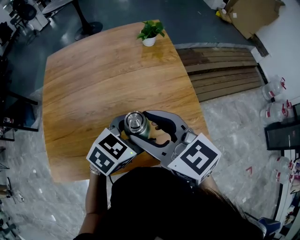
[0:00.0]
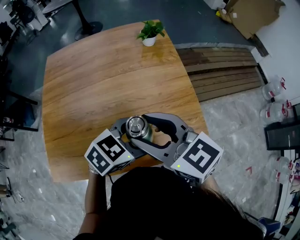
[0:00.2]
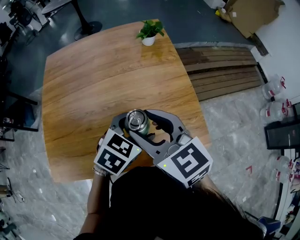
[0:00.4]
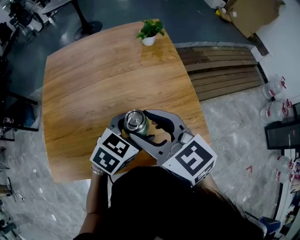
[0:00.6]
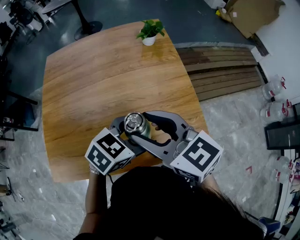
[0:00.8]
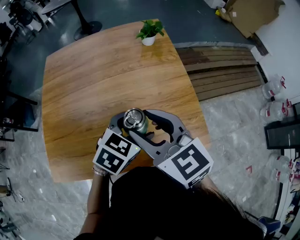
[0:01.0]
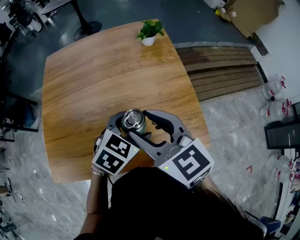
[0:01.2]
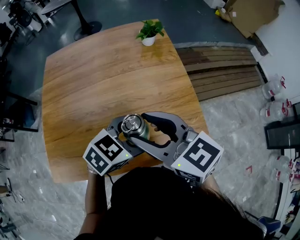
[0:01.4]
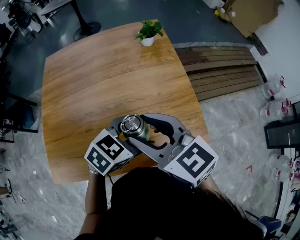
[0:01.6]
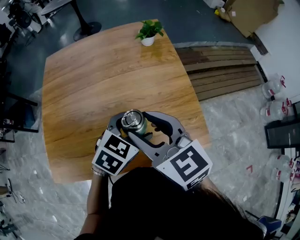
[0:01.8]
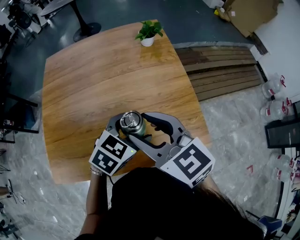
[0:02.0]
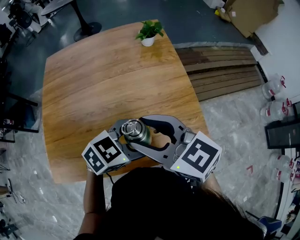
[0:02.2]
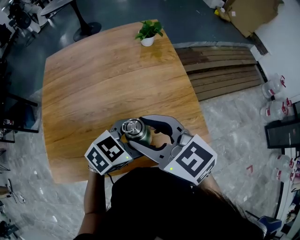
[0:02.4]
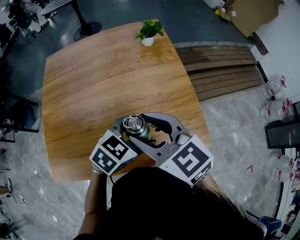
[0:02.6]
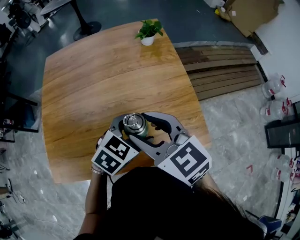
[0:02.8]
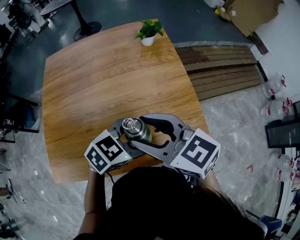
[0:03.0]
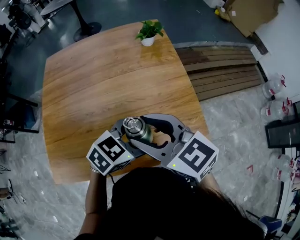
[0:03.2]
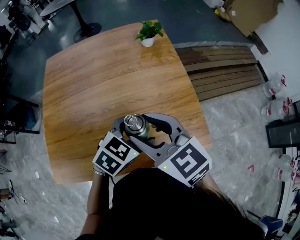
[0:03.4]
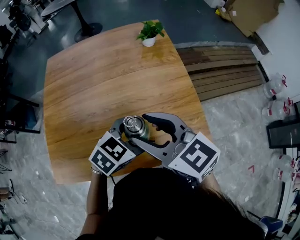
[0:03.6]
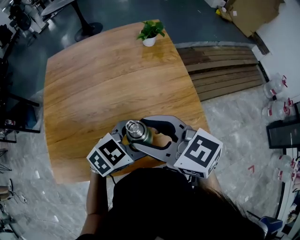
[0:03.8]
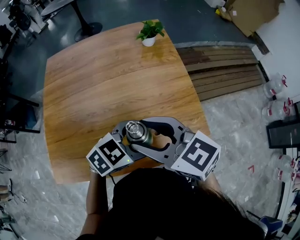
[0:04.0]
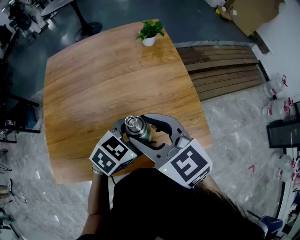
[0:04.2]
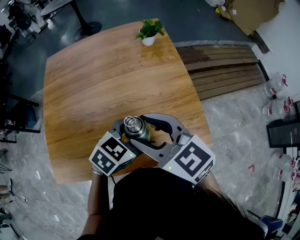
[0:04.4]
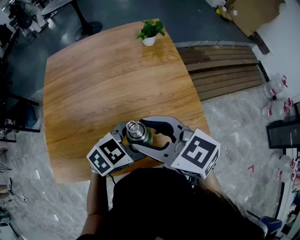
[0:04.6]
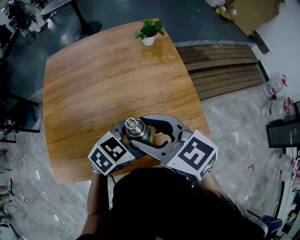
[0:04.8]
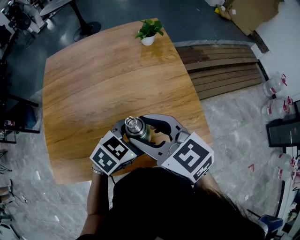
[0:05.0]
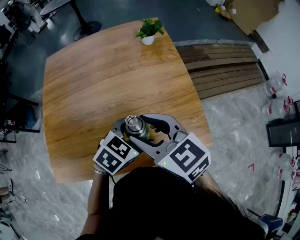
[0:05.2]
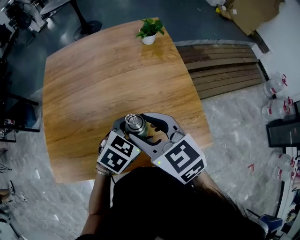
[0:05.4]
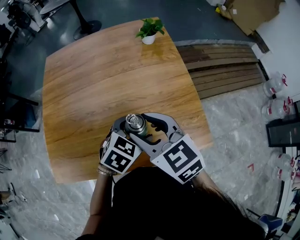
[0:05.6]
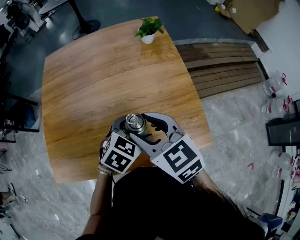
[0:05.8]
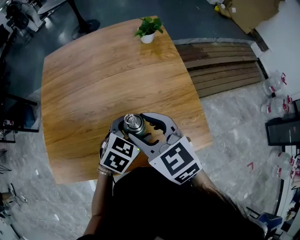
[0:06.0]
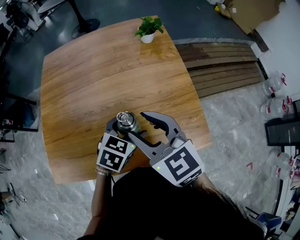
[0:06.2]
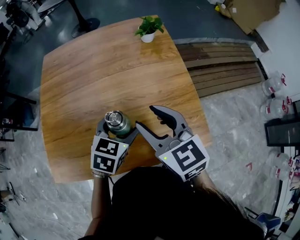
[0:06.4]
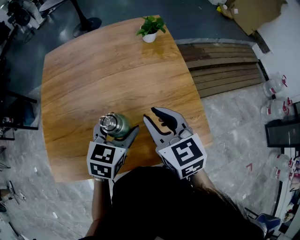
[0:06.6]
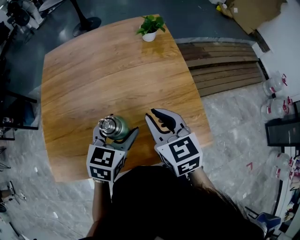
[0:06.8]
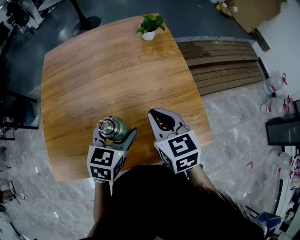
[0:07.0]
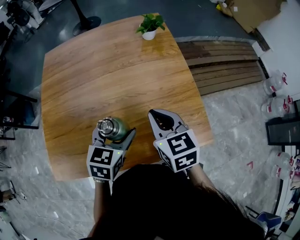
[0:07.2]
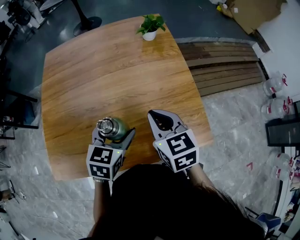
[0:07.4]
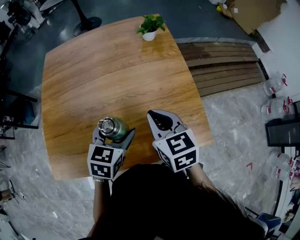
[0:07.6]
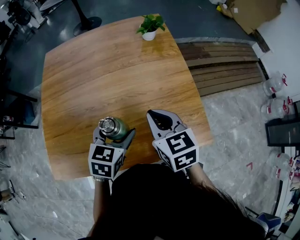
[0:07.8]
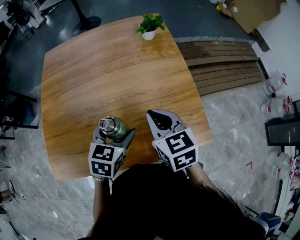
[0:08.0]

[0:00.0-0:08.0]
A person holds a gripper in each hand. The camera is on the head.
0:00.0 to 0:04.8: The grippers stay close to where they were, moving slightly.
0:04.8 to 0:06.4: The left gripper travels to the left and forward by about 10 cm, and turns by about 30 degrees. Meanwhile the right gripper moves about 5 cm.
0:06.4 to 0:08.0: The right gripper goes approximately 5 cm downward, and closes its fingers.

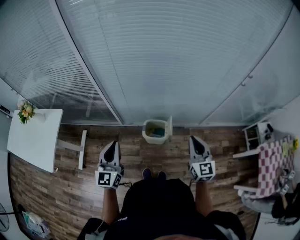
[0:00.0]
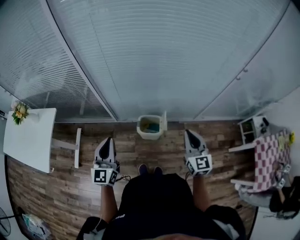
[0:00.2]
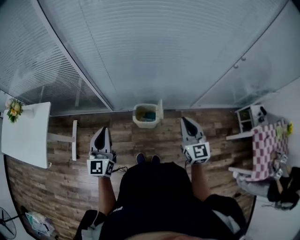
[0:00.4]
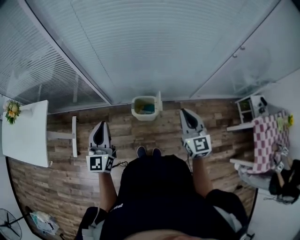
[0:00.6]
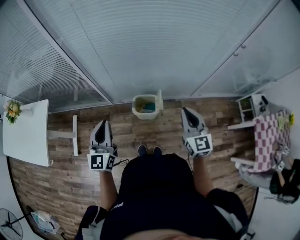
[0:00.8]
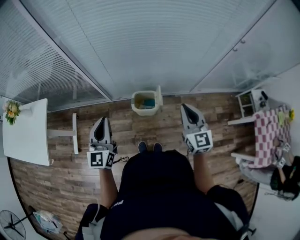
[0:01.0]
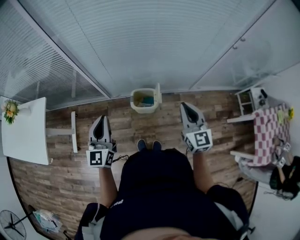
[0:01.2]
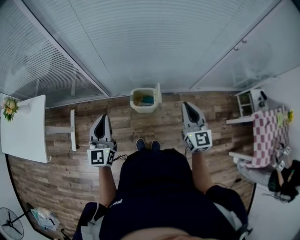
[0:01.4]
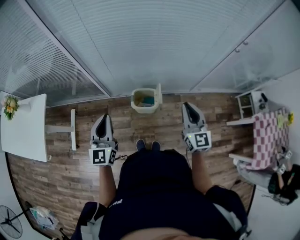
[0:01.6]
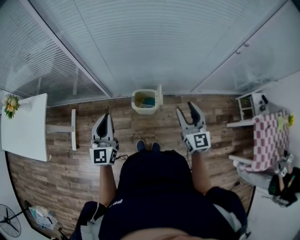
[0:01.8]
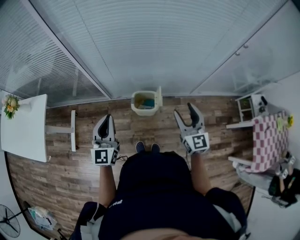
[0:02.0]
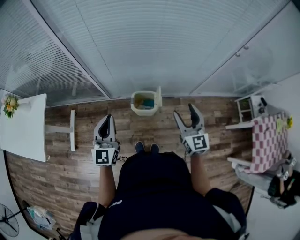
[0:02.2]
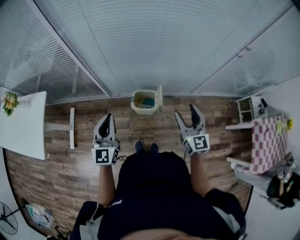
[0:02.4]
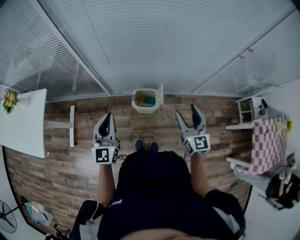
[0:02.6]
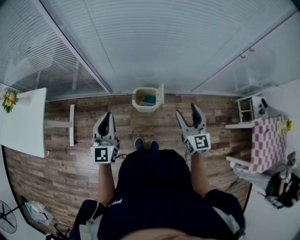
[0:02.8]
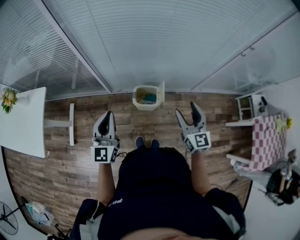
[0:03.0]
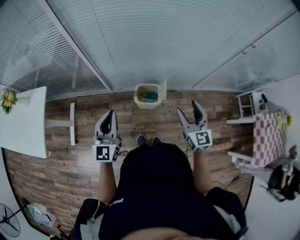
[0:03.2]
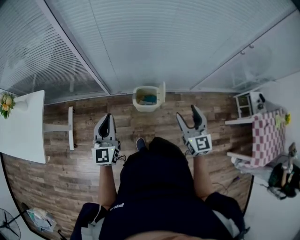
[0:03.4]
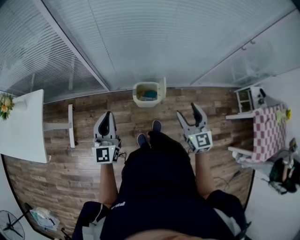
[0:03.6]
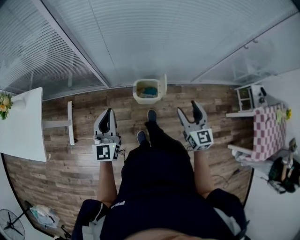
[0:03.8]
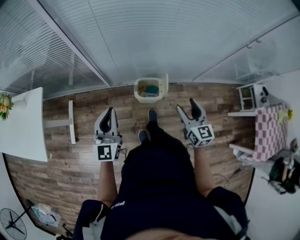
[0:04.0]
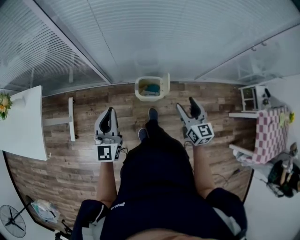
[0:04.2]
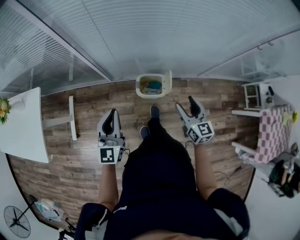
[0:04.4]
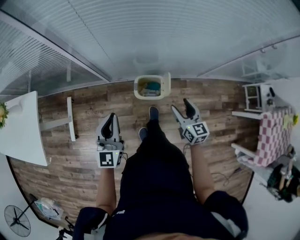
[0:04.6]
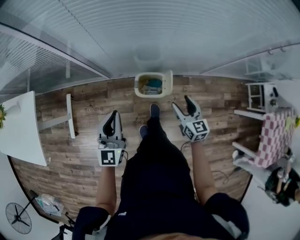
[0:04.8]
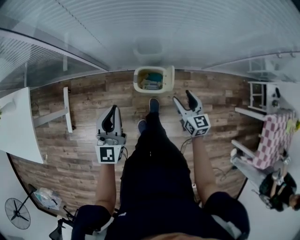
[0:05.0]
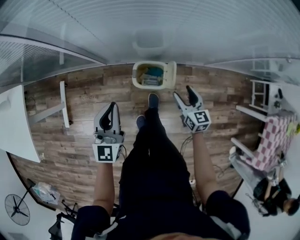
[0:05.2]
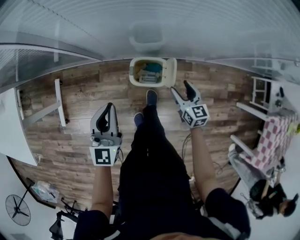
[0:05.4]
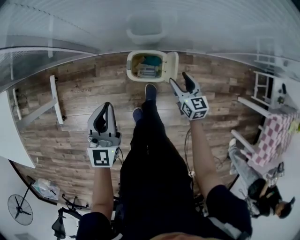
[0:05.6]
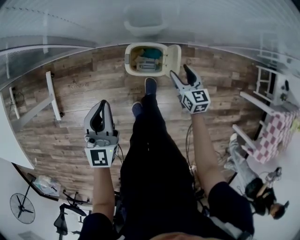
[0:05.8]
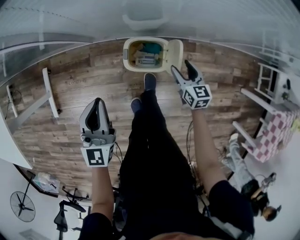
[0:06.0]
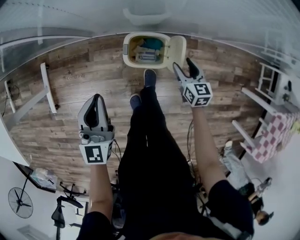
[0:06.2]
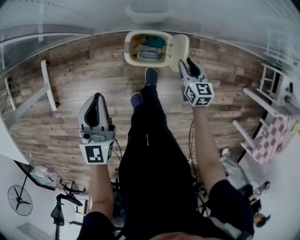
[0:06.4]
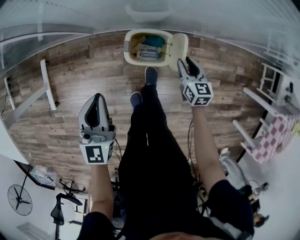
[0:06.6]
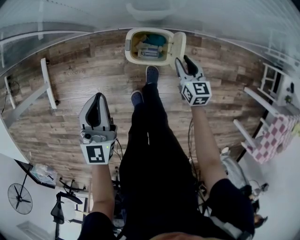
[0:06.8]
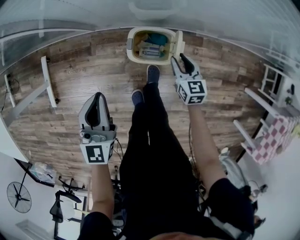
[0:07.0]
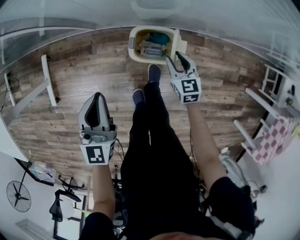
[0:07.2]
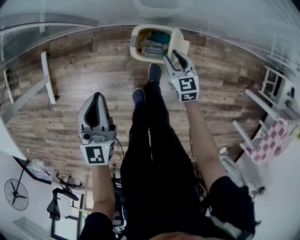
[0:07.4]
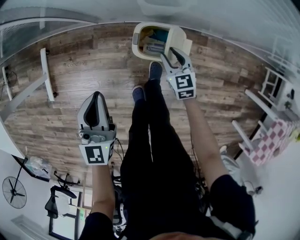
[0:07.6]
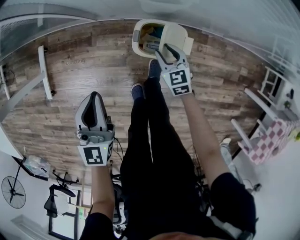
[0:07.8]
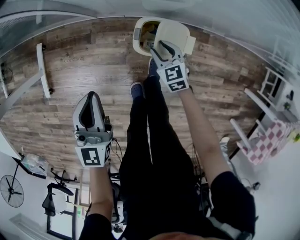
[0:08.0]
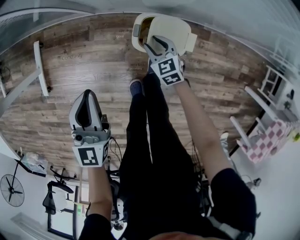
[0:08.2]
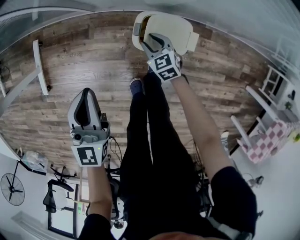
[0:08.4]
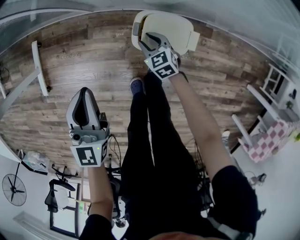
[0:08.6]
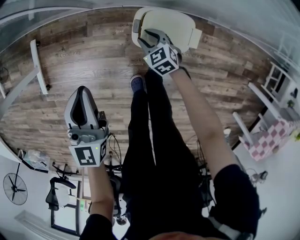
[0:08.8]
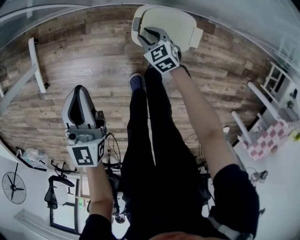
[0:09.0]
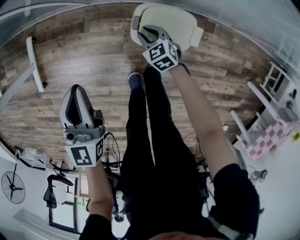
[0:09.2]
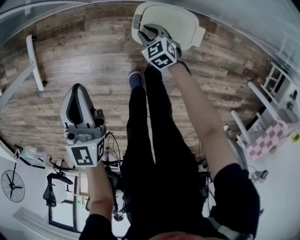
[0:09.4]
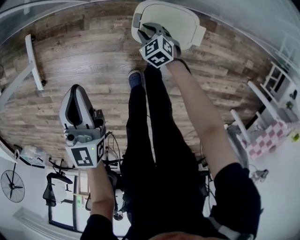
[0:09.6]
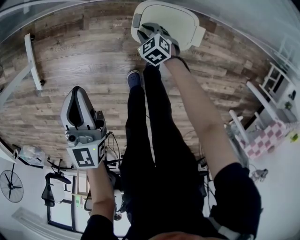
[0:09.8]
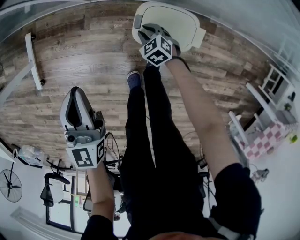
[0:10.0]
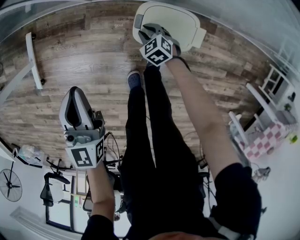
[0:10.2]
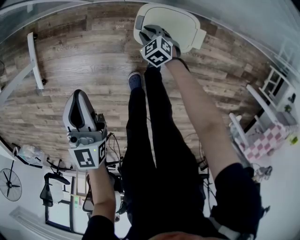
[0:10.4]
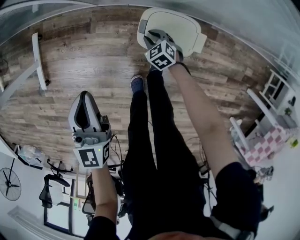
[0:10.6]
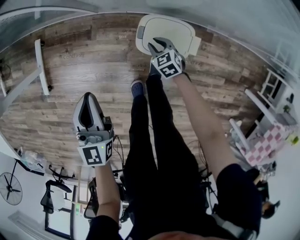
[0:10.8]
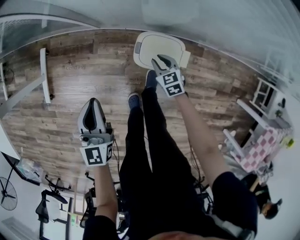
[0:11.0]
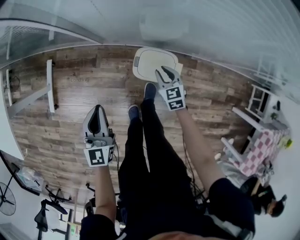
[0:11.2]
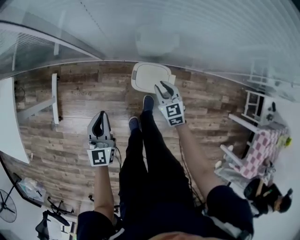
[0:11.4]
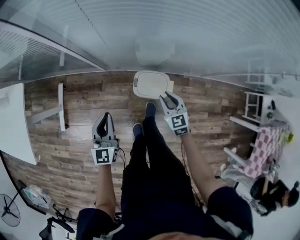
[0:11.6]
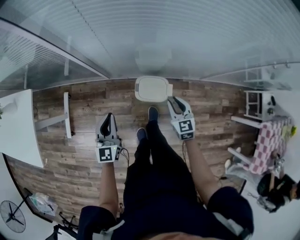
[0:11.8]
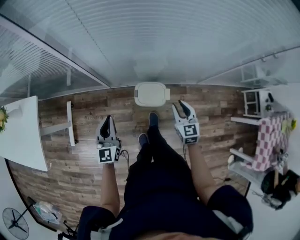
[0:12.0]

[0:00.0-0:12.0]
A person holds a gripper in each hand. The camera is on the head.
0:00.0 to 0:01.6: The grippers move only a little.
0:01.6 to 0:03.0: The right gripper opens.
0:03.0 to 0:04.4: The left gripper ends up some 5 cm from where it was. The right gripper shifts some 10 cm downward.
0:04.4 to 0:06.0: The right gripper goes approximately 35 cm downward and forward. Meanwhile the left gripper is displaced downward and forward by roughly 20 cm.
0:06.0 to 0:07.6: The right gripper is displaced to the left by some 10 cm, and closes its fingers, while the left gripper changes place by roughly 5 cm.
0:07.6 to 0:09.0: The right gripper shifts roughly 15 cm downward and to the left, and swivels about 20 degrees. The left gripper moves downward, about 5 cm.
0:09.0 to 0:10.4: The right gripper goes some 5 cm downward.
0:10.4 to 0:12.0: The right gripper goes some 50 cm upward, and tilts its fingers about 30 degrees upward. The left gripper goes roughly 20 cm upward.

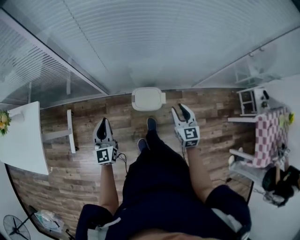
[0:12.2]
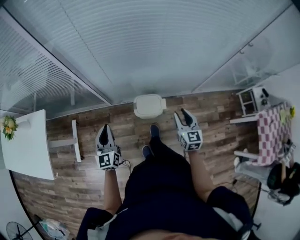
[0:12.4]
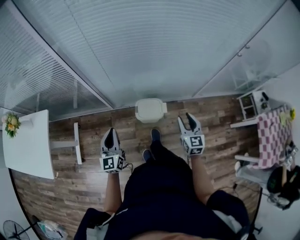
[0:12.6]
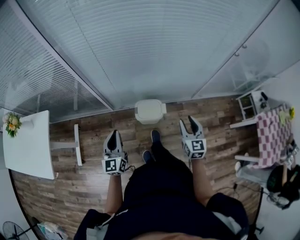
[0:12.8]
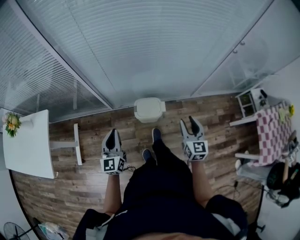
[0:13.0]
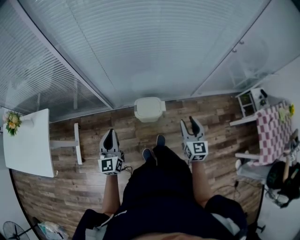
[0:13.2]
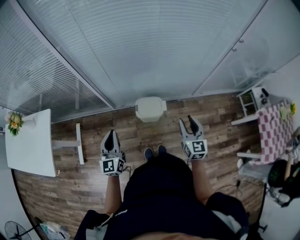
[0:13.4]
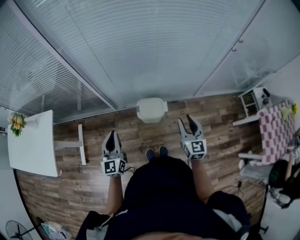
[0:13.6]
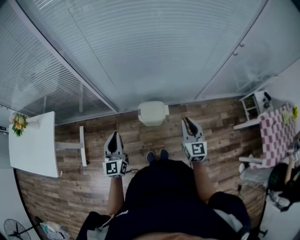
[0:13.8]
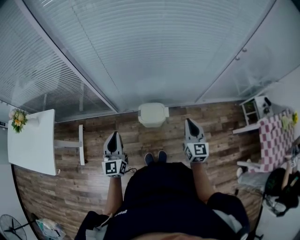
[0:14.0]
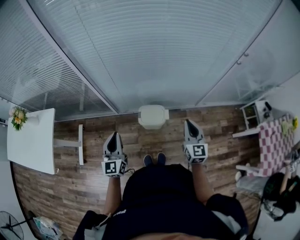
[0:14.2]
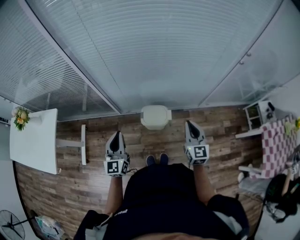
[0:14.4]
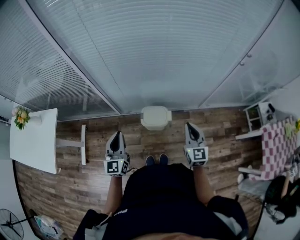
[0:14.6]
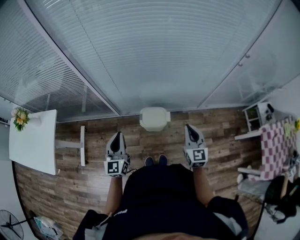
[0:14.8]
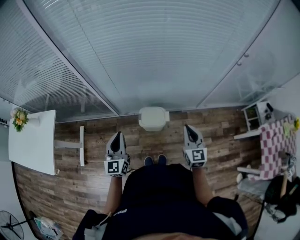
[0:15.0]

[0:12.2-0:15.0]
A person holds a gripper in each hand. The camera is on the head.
0:12.2 to 0:13.6: The two grippers go roughly 10 cm backward and upward.
0:13.6 to 0:15.0: The right gripper closes up.

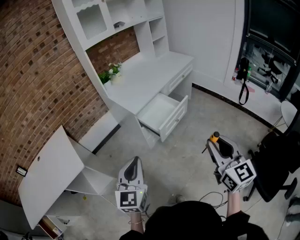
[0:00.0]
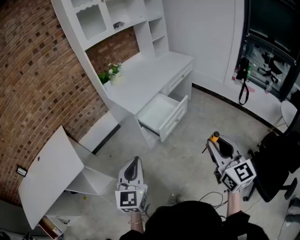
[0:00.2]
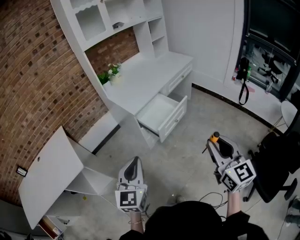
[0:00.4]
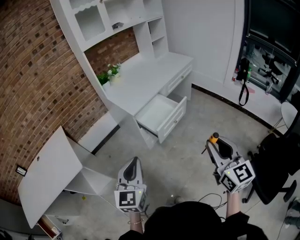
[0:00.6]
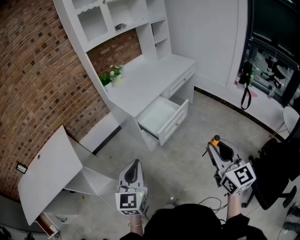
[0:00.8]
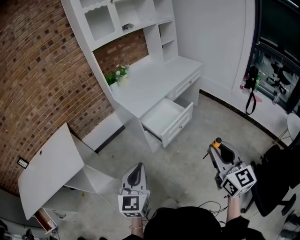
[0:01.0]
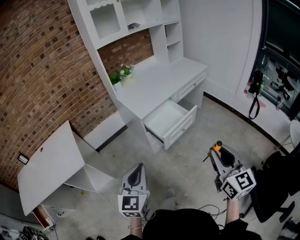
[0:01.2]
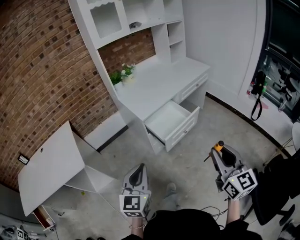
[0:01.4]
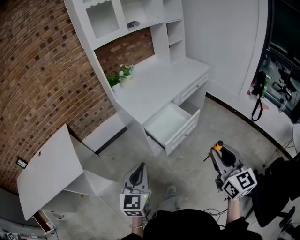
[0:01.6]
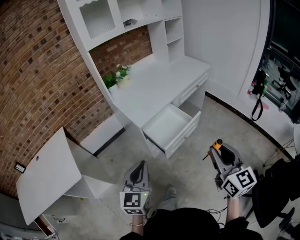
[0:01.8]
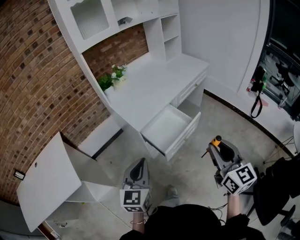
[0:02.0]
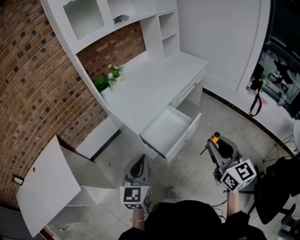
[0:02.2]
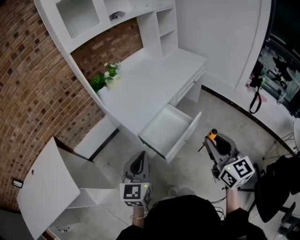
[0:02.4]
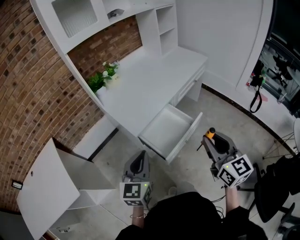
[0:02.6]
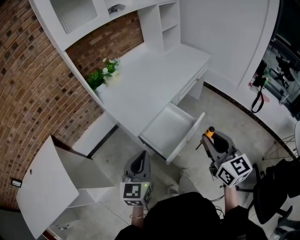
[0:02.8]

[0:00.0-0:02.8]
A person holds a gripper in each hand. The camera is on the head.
0:00.0 to 0:01.4: The left gripper changes place by about 5 cm. The right gripper goes some 5 cm forward.
0:01.4 to 0:02.8: The grippers both shift forward by some 25 cm.
